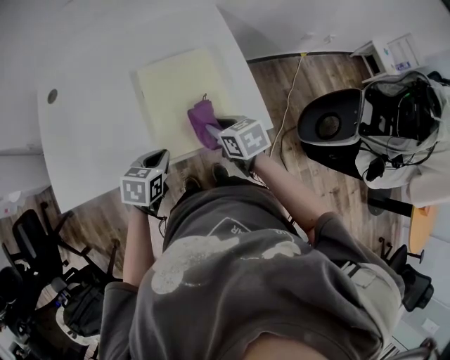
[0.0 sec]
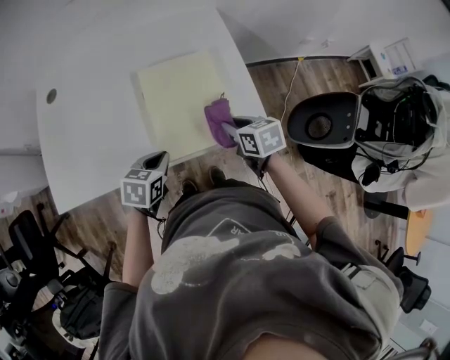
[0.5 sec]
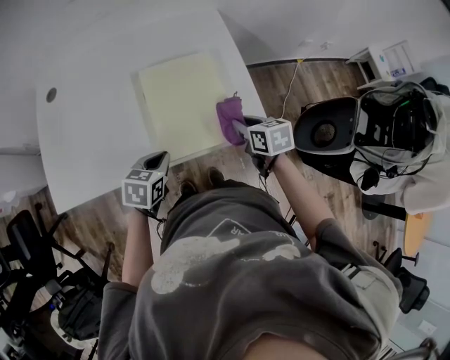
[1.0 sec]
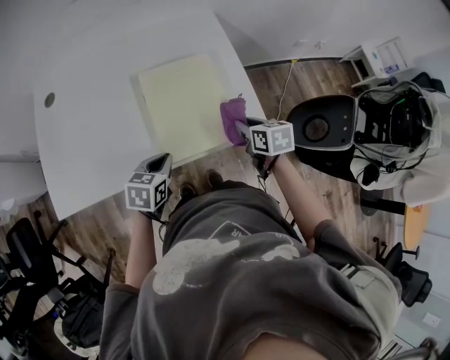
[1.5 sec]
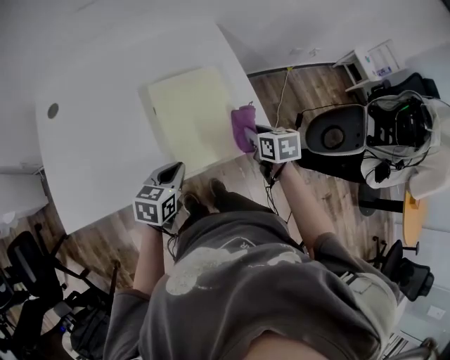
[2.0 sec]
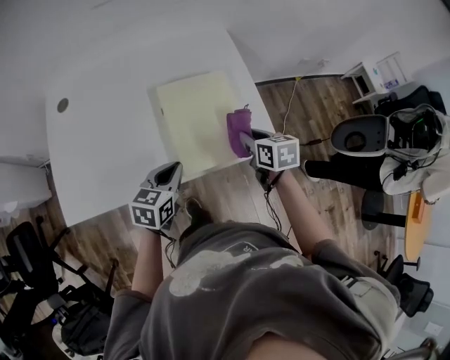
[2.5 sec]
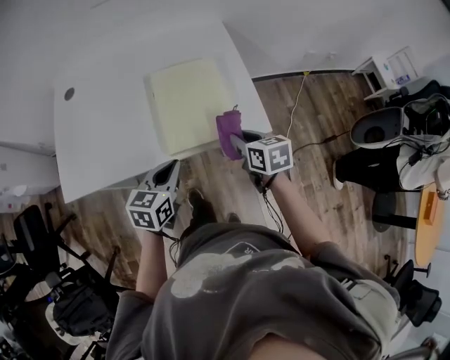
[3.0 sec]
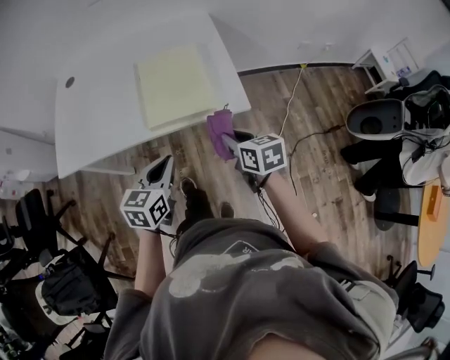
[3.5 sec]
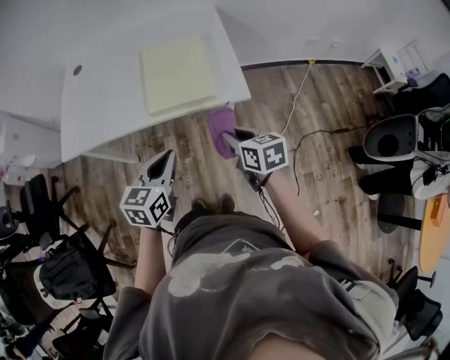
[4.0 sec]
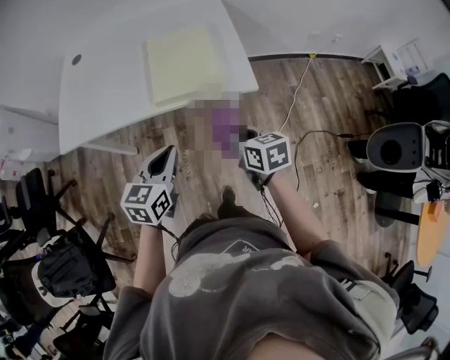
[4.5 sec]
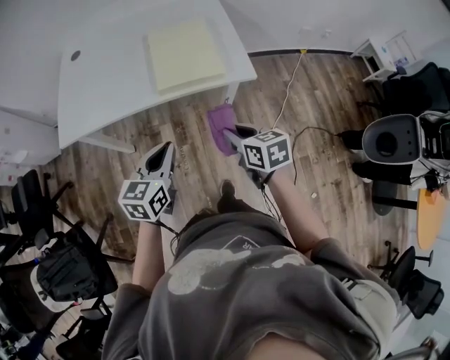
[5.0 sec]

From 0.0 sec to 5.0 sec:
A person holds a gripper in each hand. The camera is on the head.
From 2.5 sec to 5.0 sec: Both grippers travel together backward, roughly 30 cm.

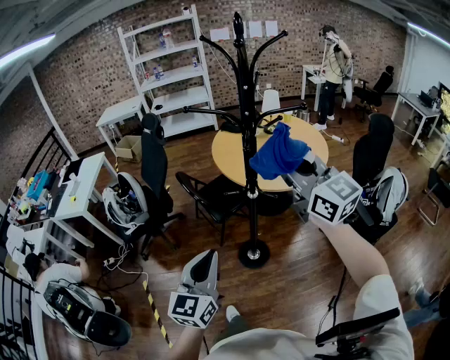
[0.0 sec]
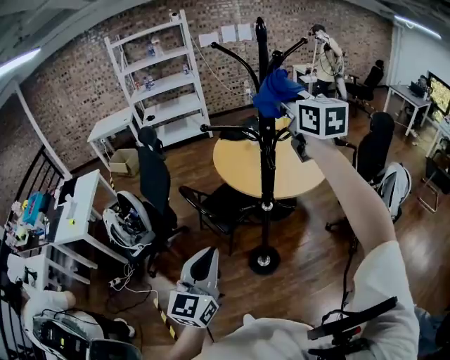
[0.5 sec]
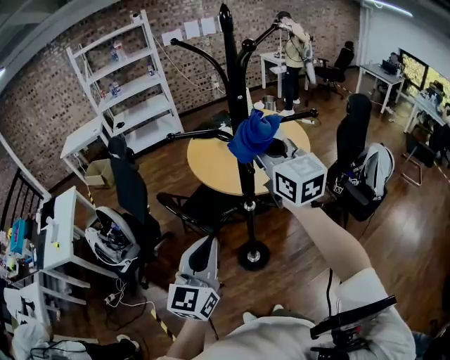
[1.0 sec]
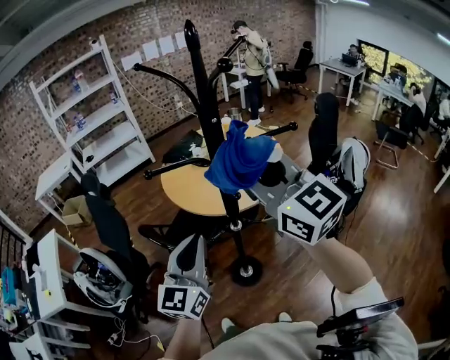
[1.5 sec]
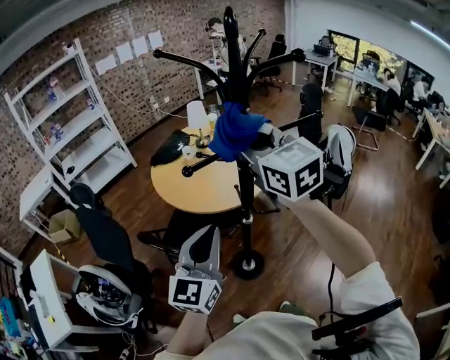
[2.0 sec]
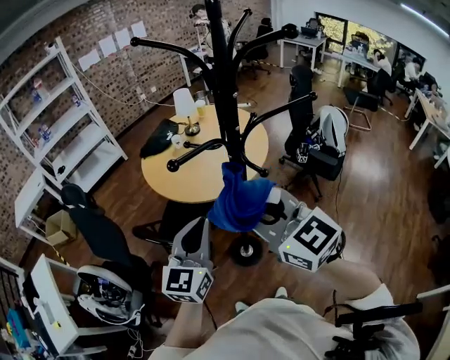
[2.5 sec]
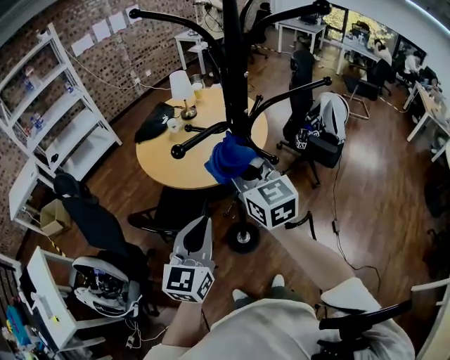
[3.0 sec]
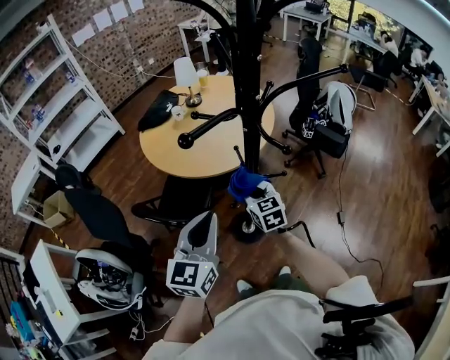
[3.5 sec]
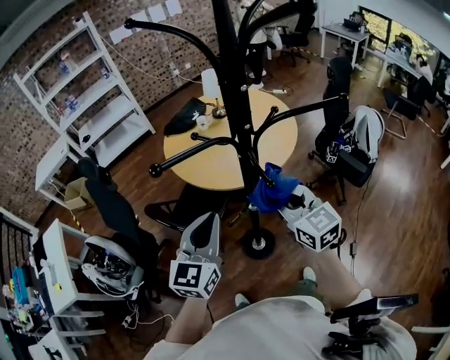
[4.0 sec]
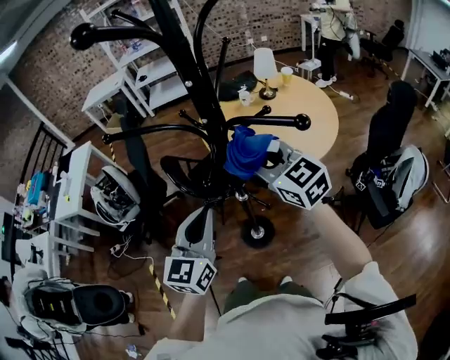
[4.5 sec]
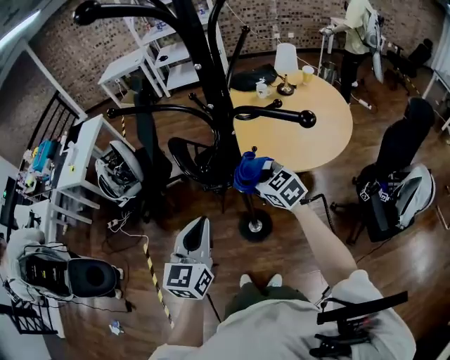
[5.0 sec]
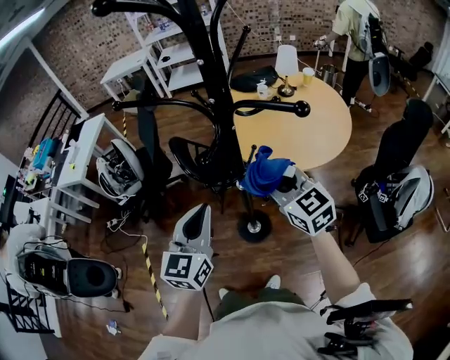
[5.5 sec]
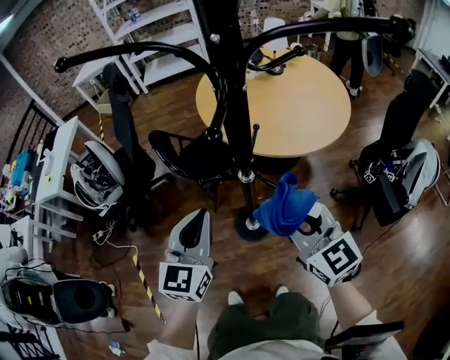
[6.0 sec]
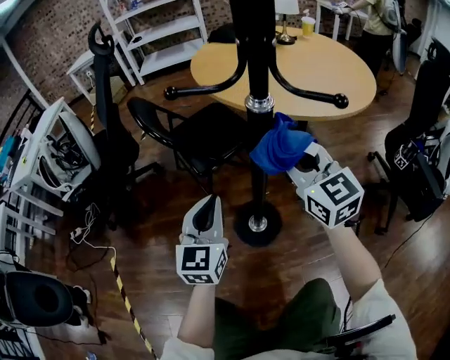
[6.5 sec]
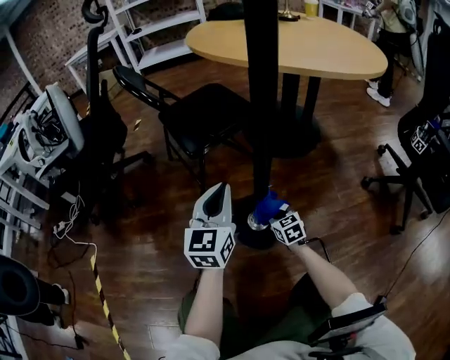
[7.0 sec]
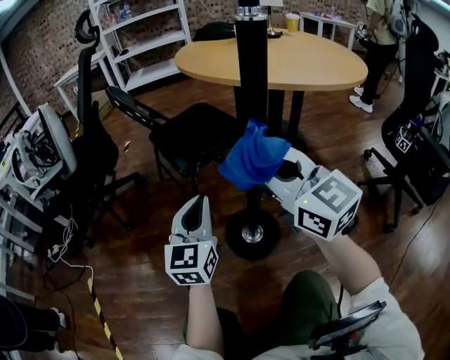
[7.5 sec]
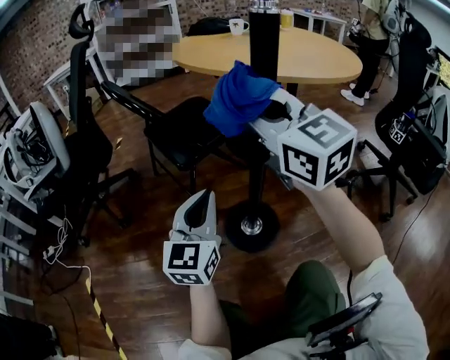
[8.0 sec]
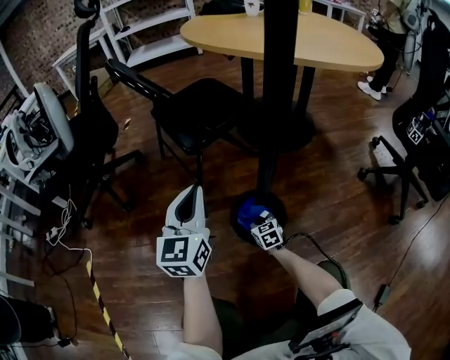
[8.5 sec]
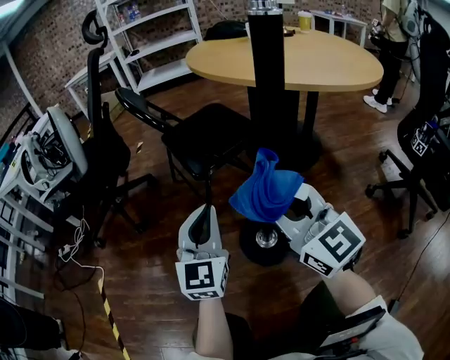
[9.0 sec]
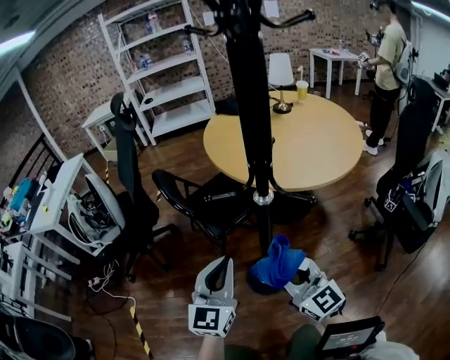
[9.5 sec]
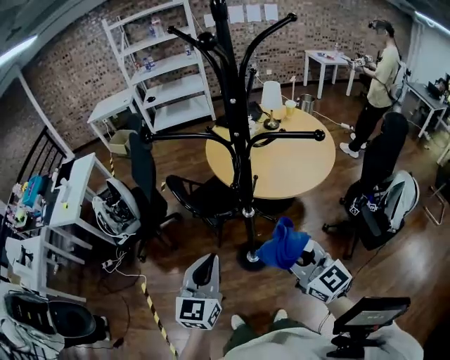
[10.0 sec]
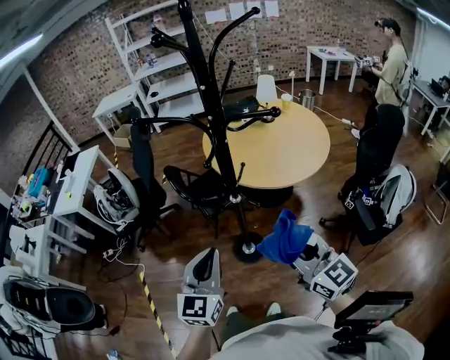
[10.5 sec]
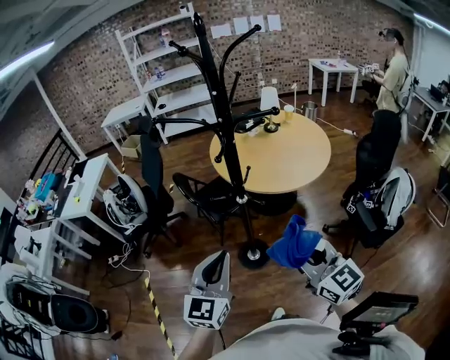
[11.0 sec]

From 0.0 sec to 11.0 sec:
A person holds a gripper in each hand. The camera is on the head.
From 0.0 sec to 2.0 sec: The left gripper changes place by some 25 cm, and turns by roughly 40 degrees. The right gripper goes up and down, approximately 10 cm each way, reversing 2 times, and turns by approximately 40 degrees.
From 2.0 sec to 3.5 sec: The left gripper travels downward by roughly 10 cm. The right gripper shifts some 40 cm downward, and rotates roughly 30 degrees.
From 3.5 sec to 5.5 sec: The right gripper swings up and down, some 20 cm each way, with 2 reversals, and changes its angle by roughly 60 degrees; the left gripper changes place by roughly 15 cm, and rotates roughly 50 degrees.
From 5.5 sec to 7.5 sec: The two grippers go about 50 cm downward.
From 7.5 sec to 9.0 sec: The right gripper goes up and down, some 60 cm each way, reversing 2 times.
From 9.0 sec to 11.0 sec: The grippers both shift upward and backward by some 60 cm.

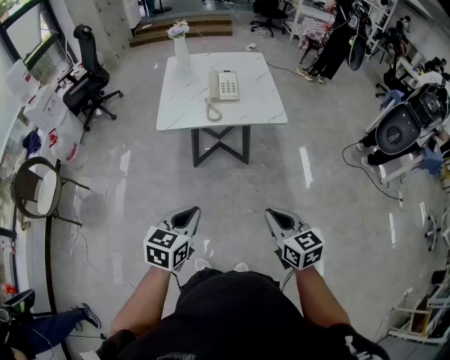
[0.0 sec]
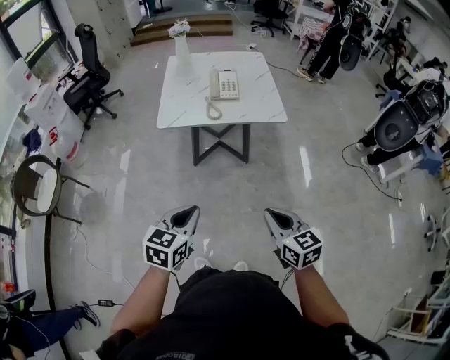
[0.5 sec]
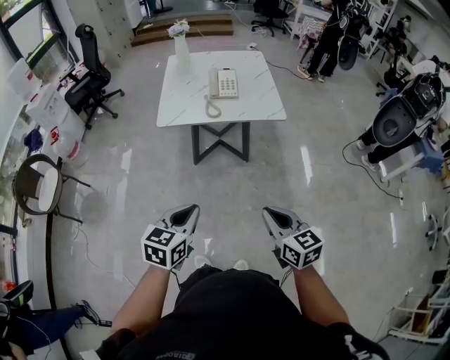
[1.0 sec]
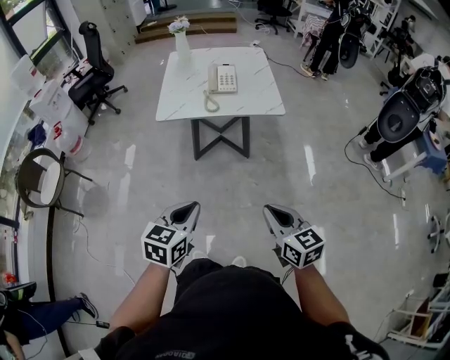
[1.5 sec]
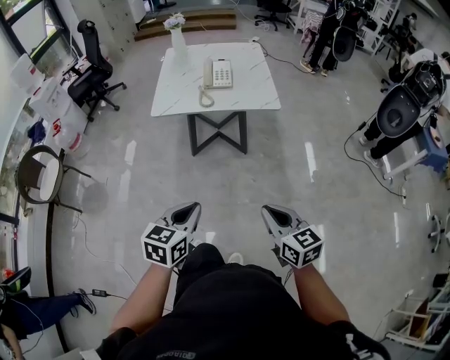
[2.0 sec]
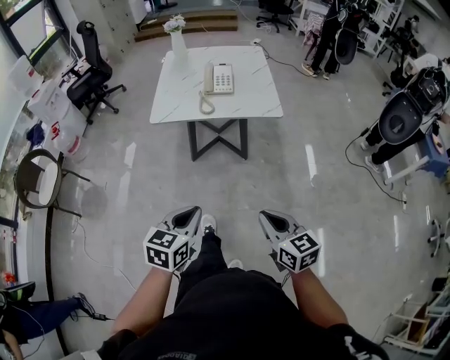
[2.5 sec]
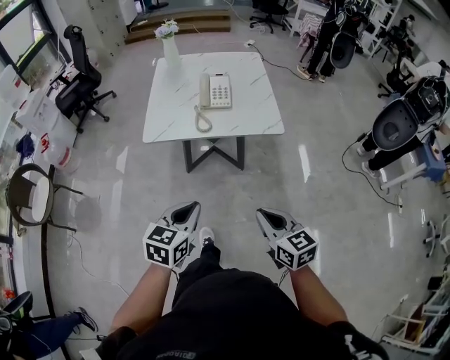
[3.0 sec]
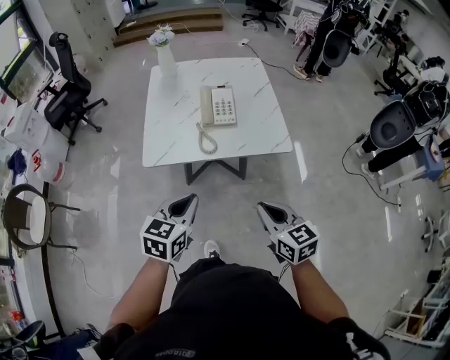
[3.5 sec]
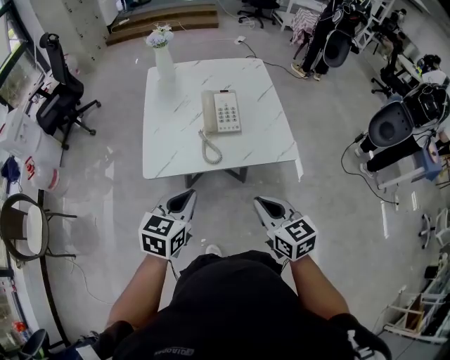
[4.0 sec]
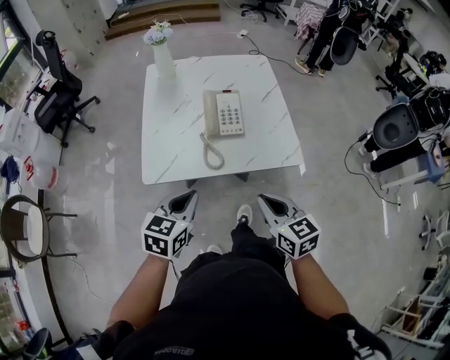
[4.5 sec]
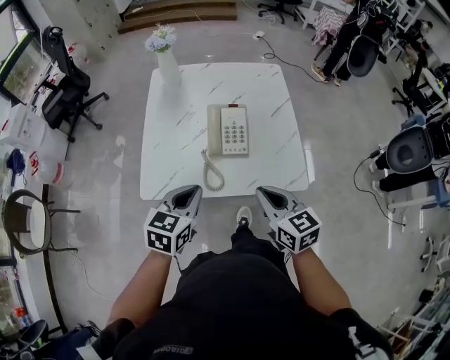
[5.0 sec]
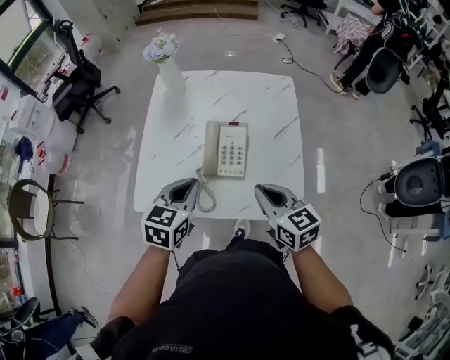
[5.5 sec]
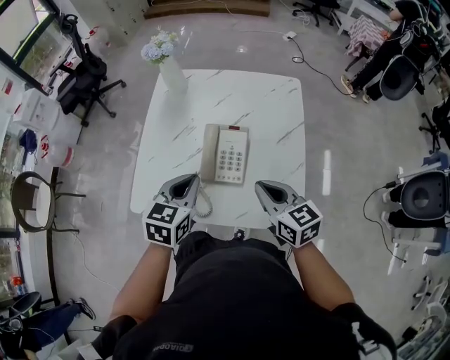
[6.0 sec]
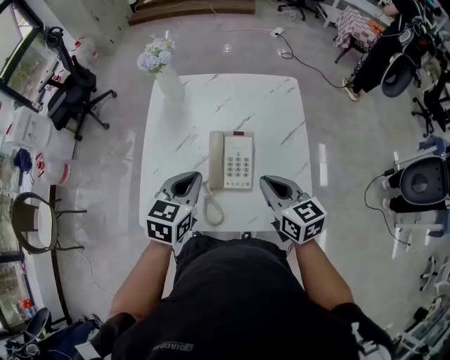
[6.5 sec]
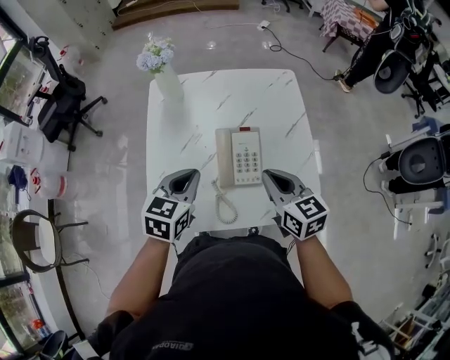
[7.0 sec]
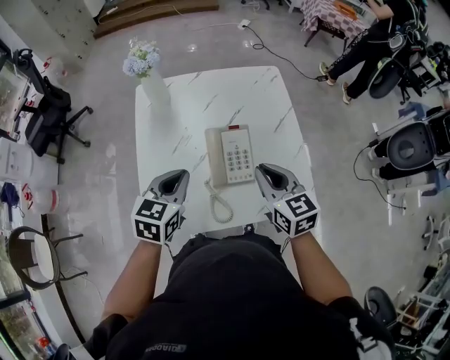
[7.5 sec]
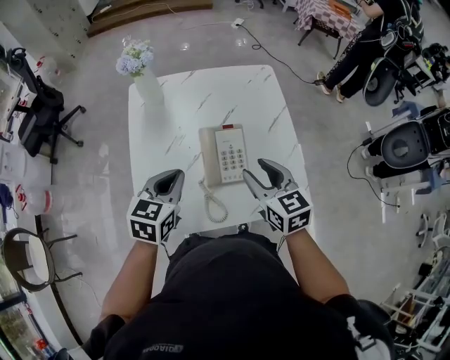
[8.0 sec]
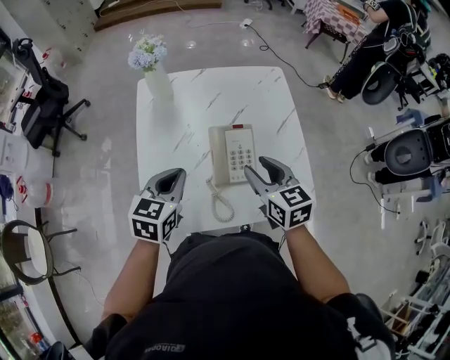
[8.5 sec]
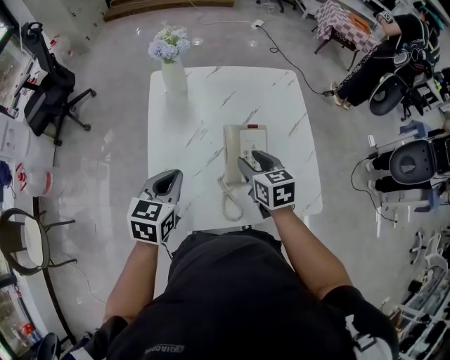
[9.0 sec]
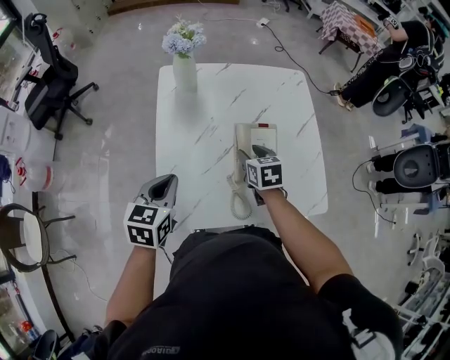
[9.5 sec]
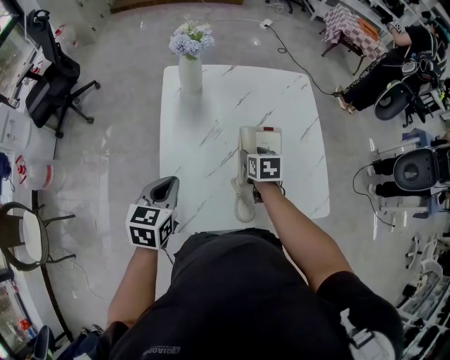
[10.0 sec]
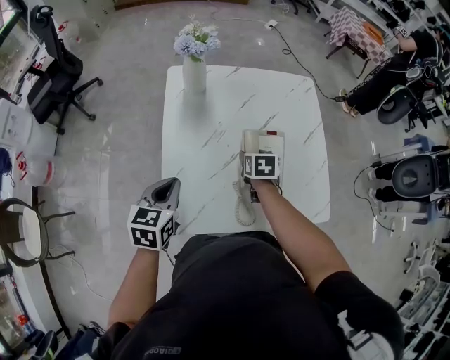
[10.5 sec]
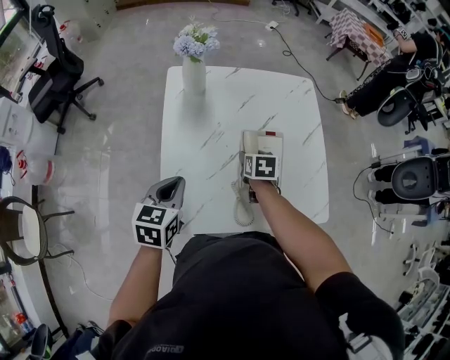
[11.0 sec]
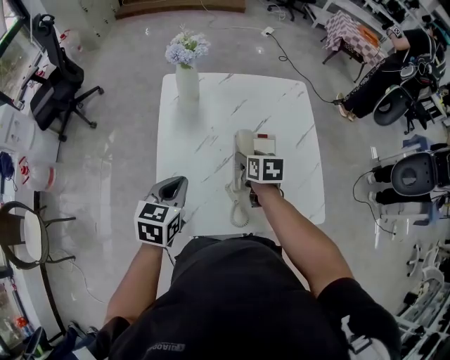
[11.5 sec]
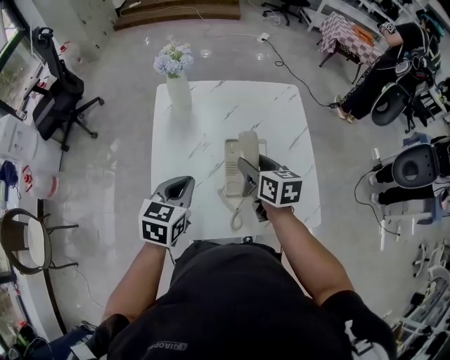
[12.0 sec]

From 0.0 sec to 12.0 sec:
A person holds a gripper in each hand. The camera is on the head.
From 0.0 sec to 2.0 sec: The right gripper goes some 10 cm backward and to the right, while the left gripper is displaced to the right and backward by approximately 10 cm.
From 2.0 sec to 4.0 sec: The two grippers go about 40 cm forward.
From 4.0 sec to 6.0 sec: The two grippers go some 30 cm forward.
From 6.0 sec to 8.0 sec: The left gripper heads to the left and forward, covering roughly 10 cm. Meanwhile the right gripper is displaced to the left by approximately 5 cm, swivels about 20 degrees, and opens its fingers.
From 8.0 sec to 10.0 sec: The right gripper travels downward, to the left and forward by about 20 cm, and swivels about 30 degrees. Meanwhile the left gripper shifts some 15 cm to the left.
From 10.0 sec to 12.0 sec: The left gripper goes some 10 cm to the right. Meanwhile the right gripper shifts approximately 10 cm upward, and swivels some 20 degrees.
